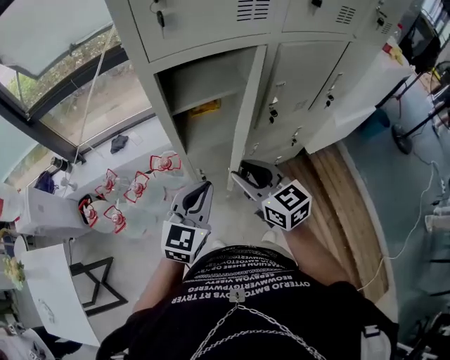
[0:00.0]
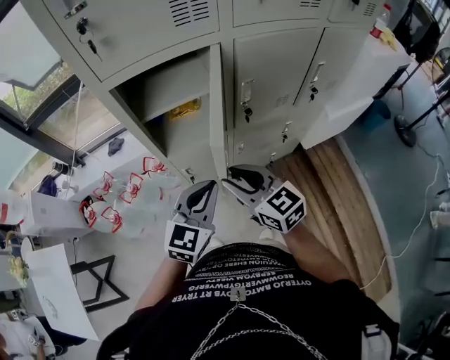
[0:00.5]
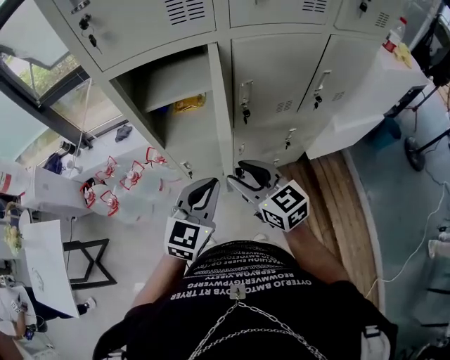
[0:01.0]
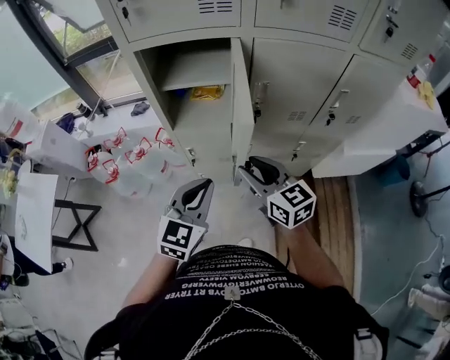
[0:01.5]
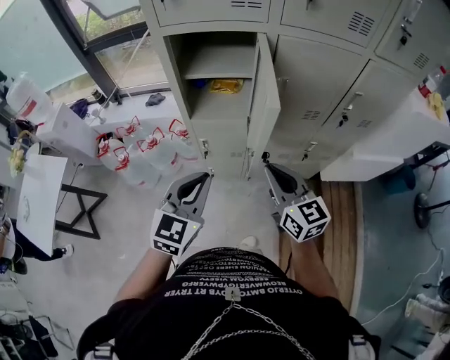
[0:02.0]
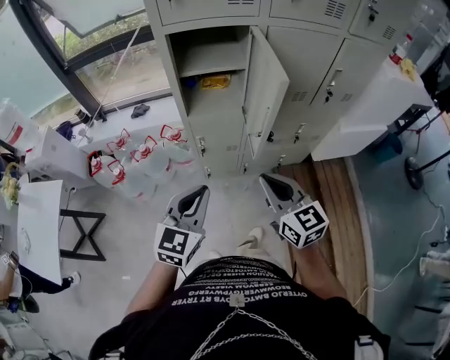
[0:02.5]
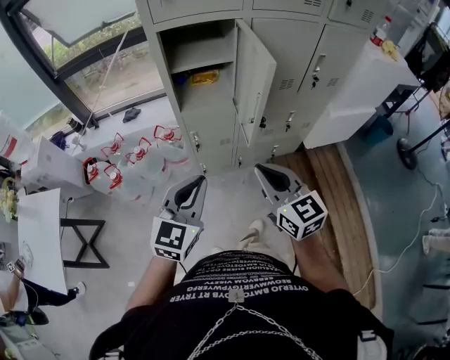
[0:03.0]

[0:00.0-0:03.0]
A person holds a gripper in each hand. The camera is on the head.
0:00.0 to 0:01.5: The left gripper moves to the right and backward, about 20 cm. The right gripper shifts some 20 cm to the right.
0:01.5 to 0:03.0: The two grippers go about 20 cm backward and to the left. The right gripper closes up.

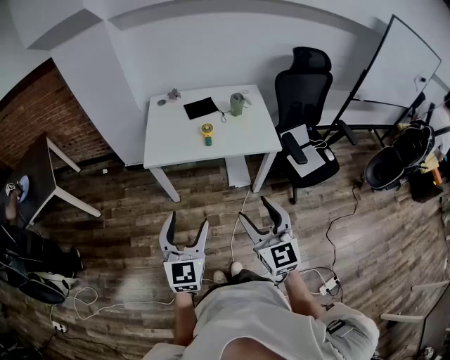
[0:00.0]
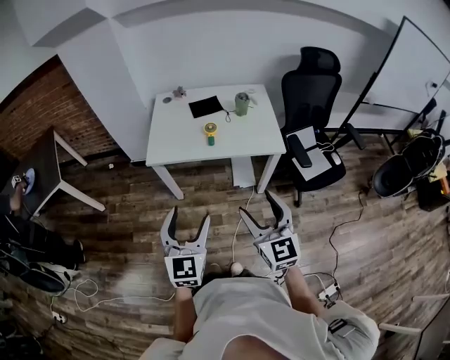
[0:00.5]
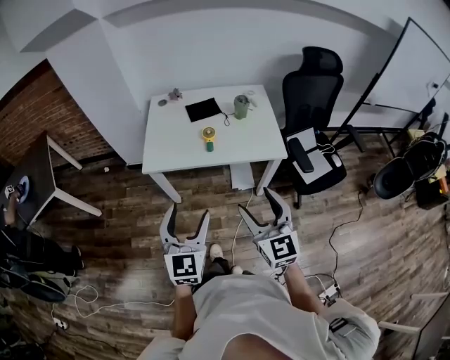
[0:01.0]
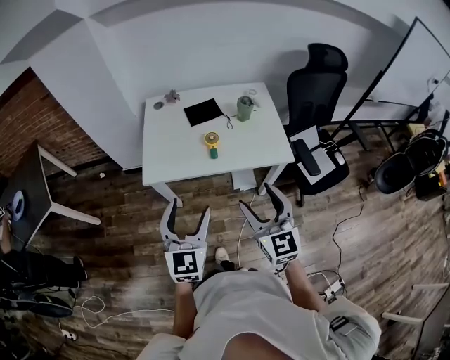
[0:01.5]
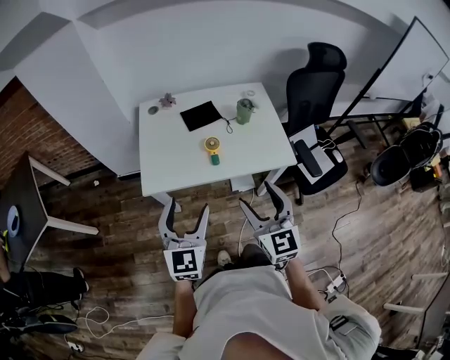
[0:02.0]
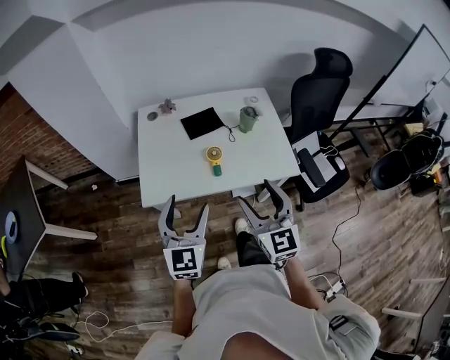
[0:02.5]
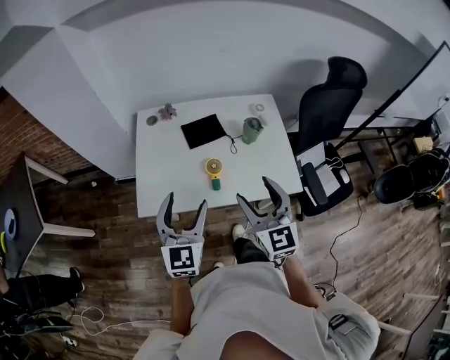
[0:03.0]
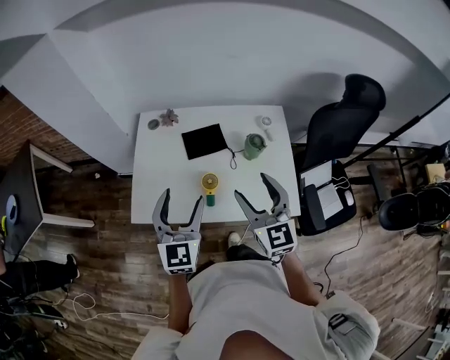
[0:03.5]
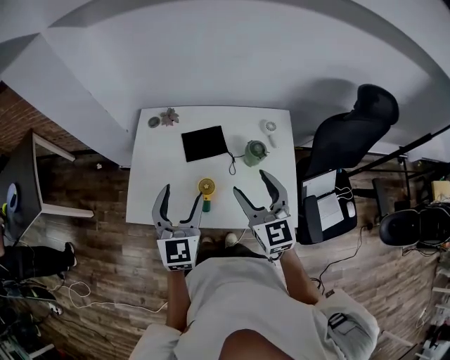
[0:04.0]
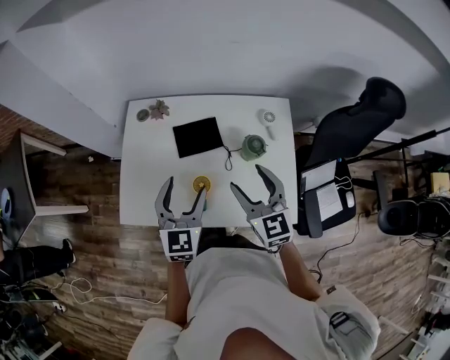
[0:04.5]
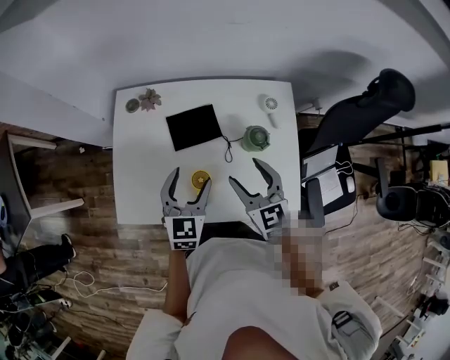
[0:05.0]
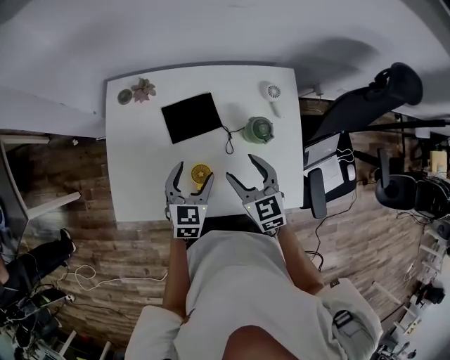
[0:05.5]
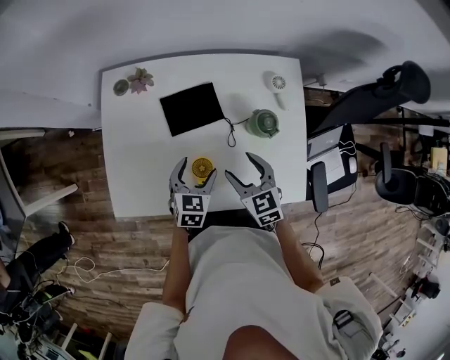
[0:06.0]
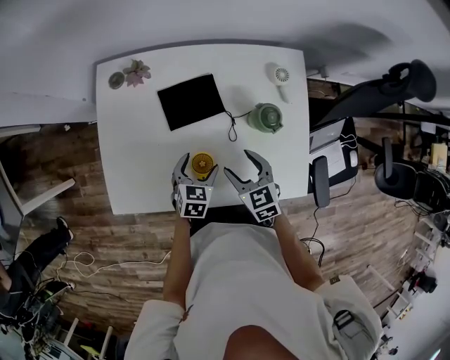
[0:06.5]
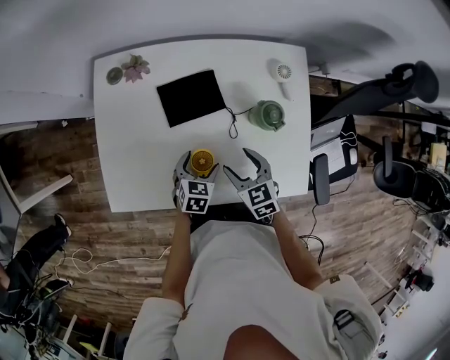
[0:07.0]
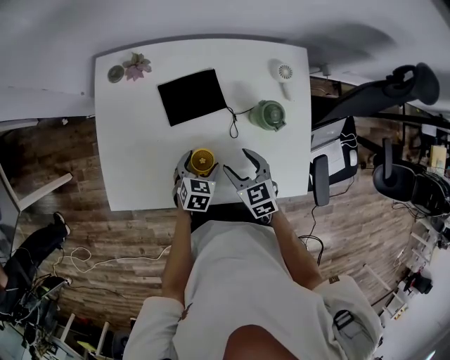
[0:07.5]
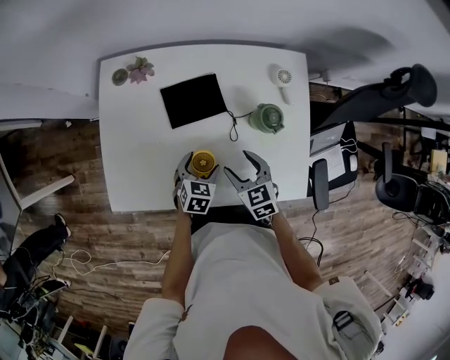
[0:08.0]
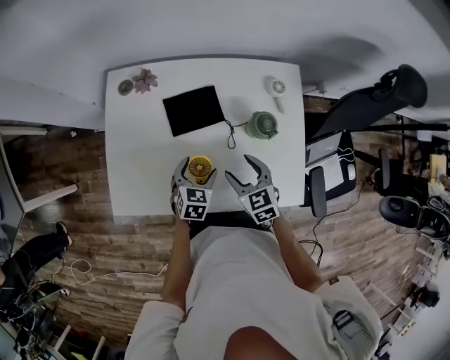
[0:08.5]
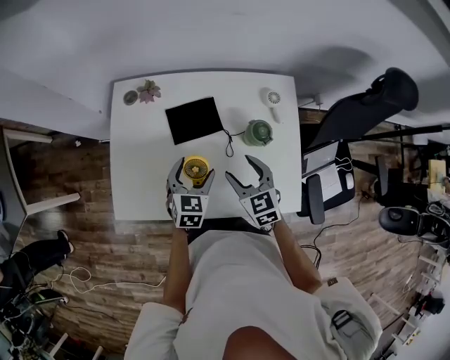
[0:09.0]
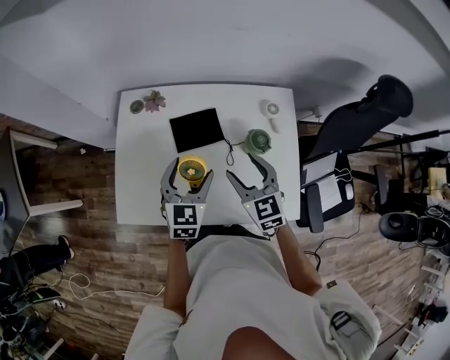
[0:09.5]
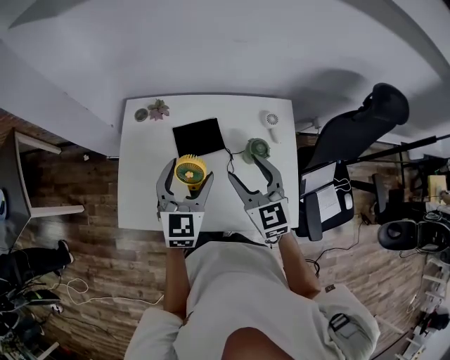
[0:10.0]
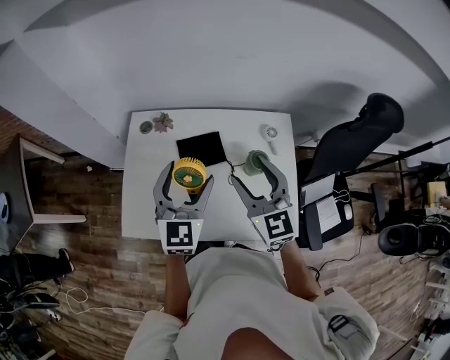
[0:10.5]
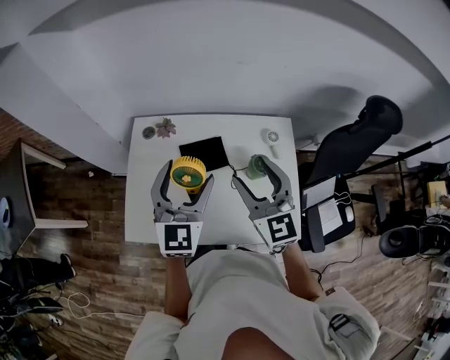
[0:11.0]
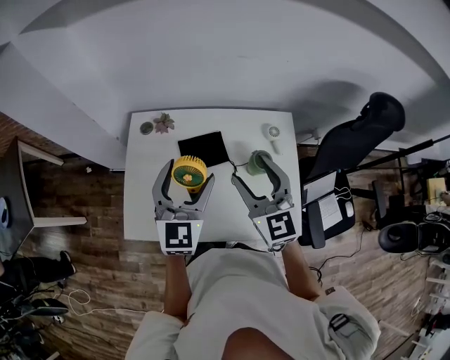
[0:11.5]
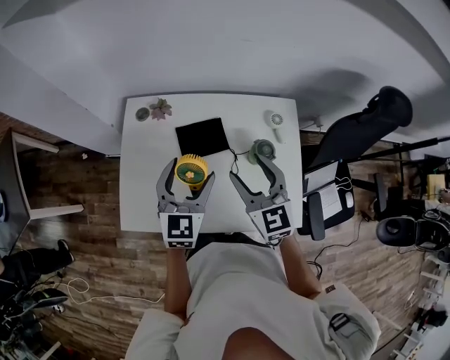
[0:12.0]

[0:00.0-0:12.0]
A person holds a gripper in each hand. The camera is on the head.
0:00.0 to 0:02.0: The two grippers go about 25 cm forward.
0:02.0 to 0:04.0: The grippers both shift forward by about 30 cm.
0:04.0 to 0:06.0: Both grippers move downward, some 25 cm. The right gripper rotates some 30 degrees, while the left gripper points its fingers some 30 degrees further downward.
0:06.0 to 0:08.0: The two grippers go some 5 cm downward.
0:08.0 to 0:10.0: Both grippers travel together upward, roughly 25 cm. The left gripper tilts its fingers approximately 40 degrees upward. Meanwhile the right gripper changes its angle by approximately 30 degrees.
0:10.0 to 0:12.0: The right gripper moves approximately 10 cm upward and comes back. Meanwhile the left gripper goes upward and returns, approximately 10 cm each way.

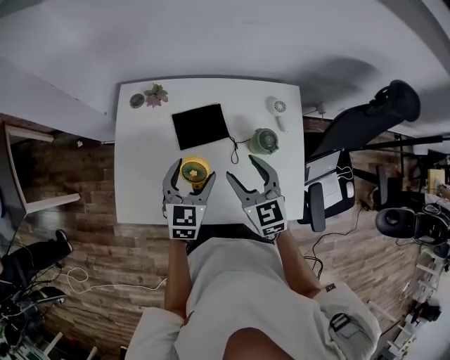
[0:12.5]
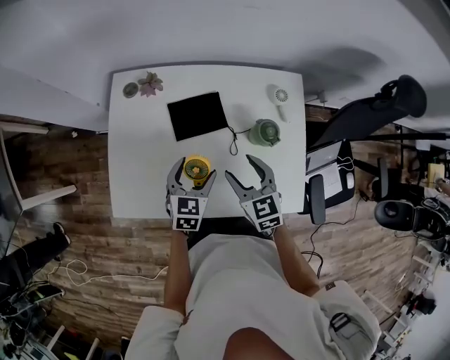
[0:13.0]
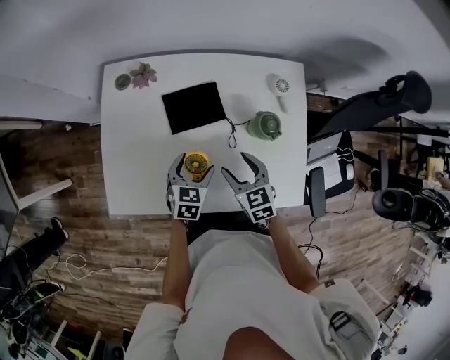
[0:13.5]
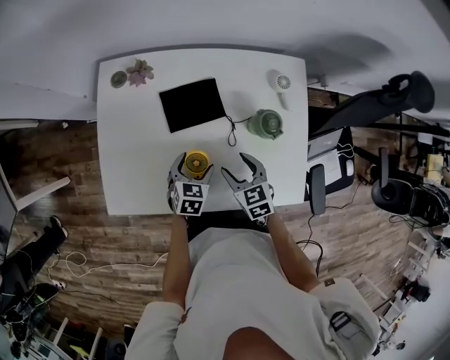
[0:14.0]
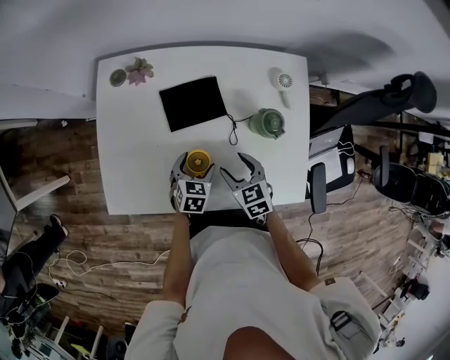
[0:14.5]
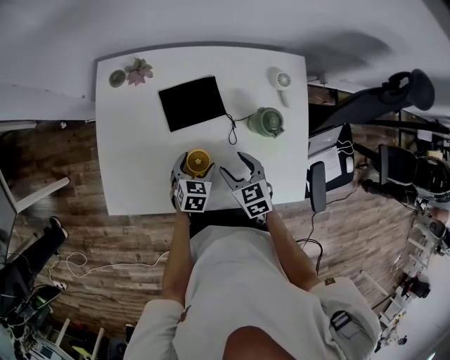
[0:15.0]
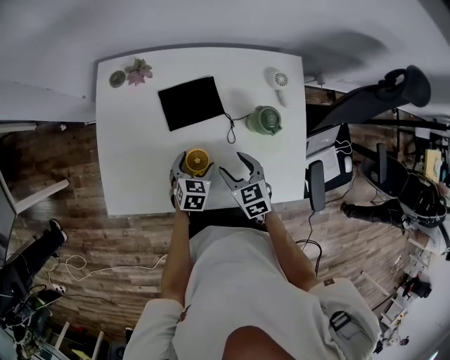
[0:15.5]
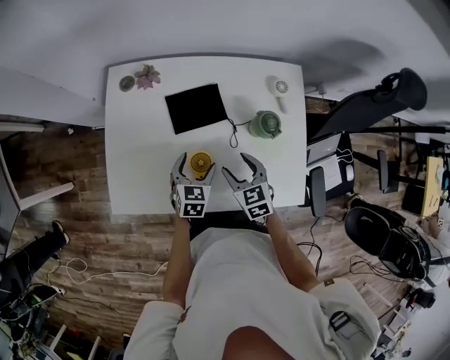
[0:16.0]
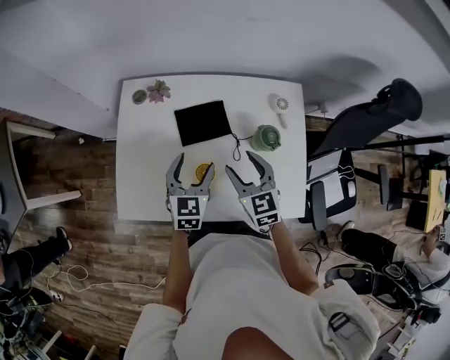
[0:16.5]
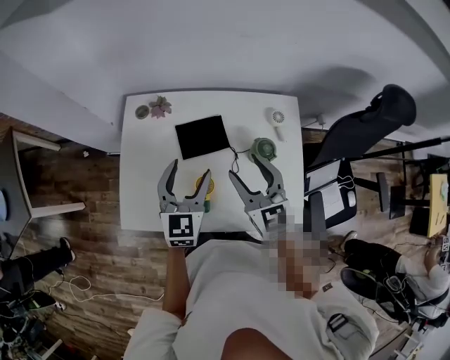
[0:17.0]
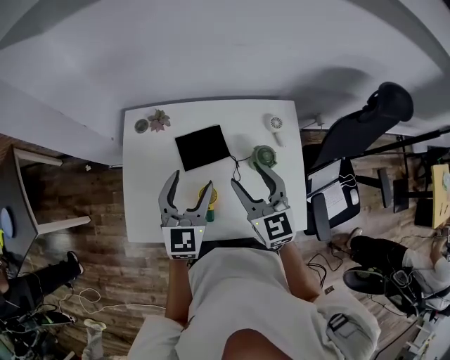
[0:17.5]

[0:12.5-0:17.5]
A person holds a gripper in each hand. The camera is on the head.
0:12.5 to 0:15.0: Both grippers move downward, some 20 cm. The right gripper changes its angle by approximately 20 degrees, while the left gripper turns by some 30 degrees.
0:15.0 to 0:17.5: The two grippers go roughly 30 cm upward. The left gripper points its fingers some 40 degrees further upward; the right gripper tips its fingers upward by roughly 30 degrees.

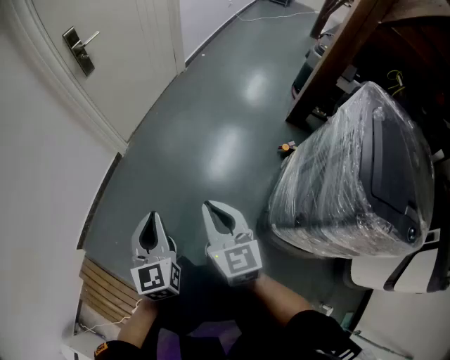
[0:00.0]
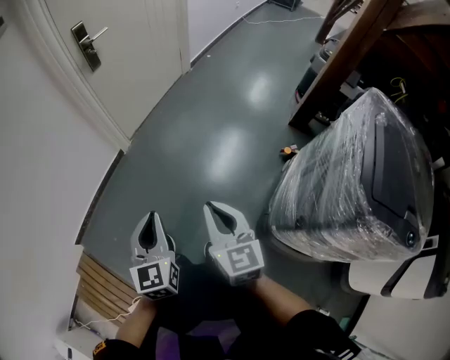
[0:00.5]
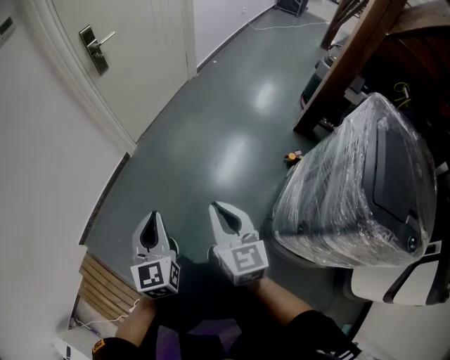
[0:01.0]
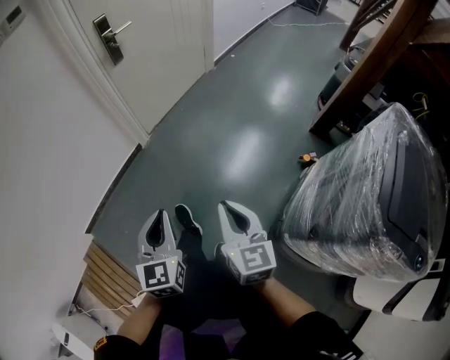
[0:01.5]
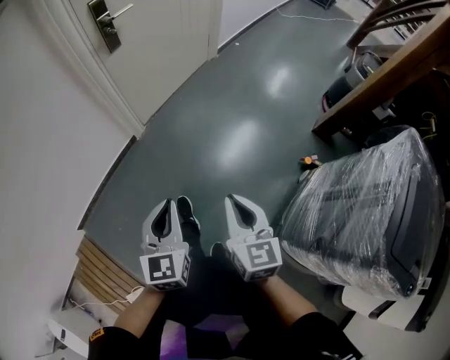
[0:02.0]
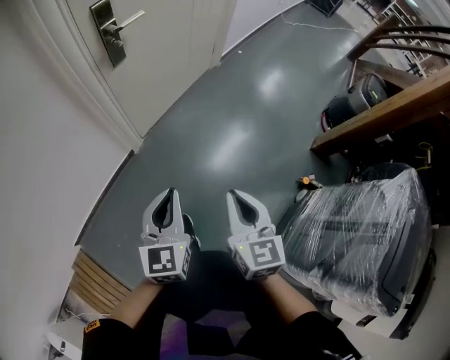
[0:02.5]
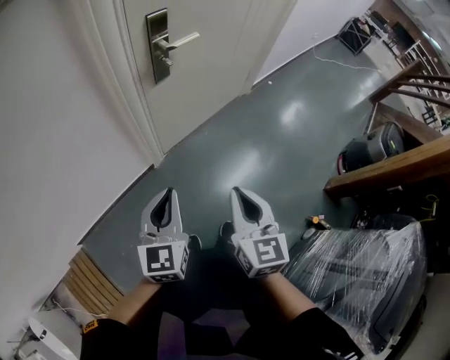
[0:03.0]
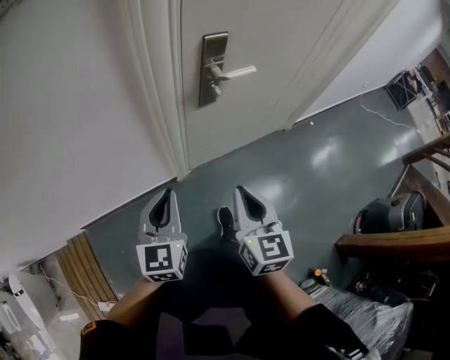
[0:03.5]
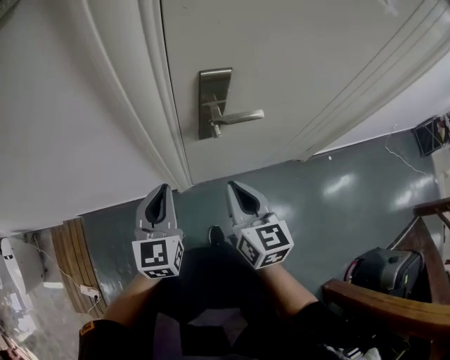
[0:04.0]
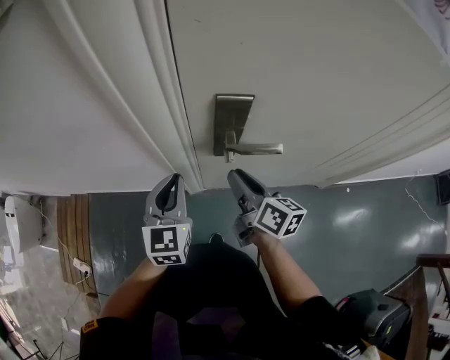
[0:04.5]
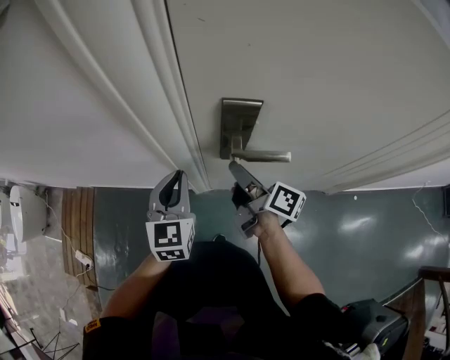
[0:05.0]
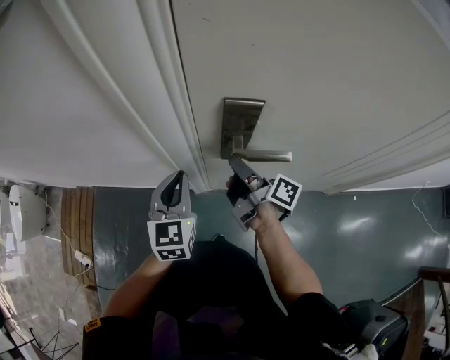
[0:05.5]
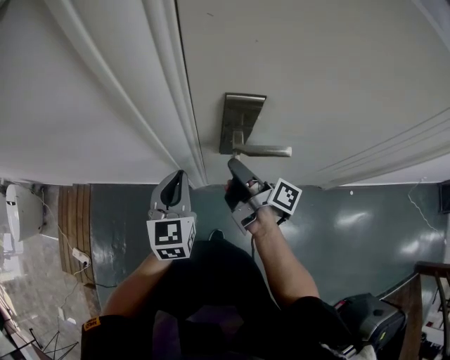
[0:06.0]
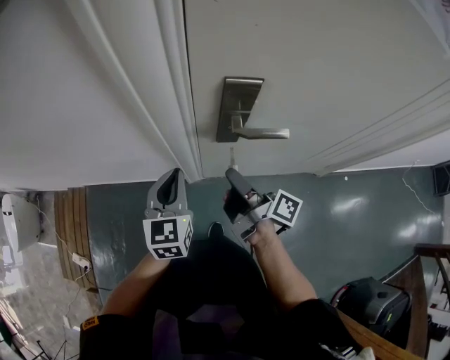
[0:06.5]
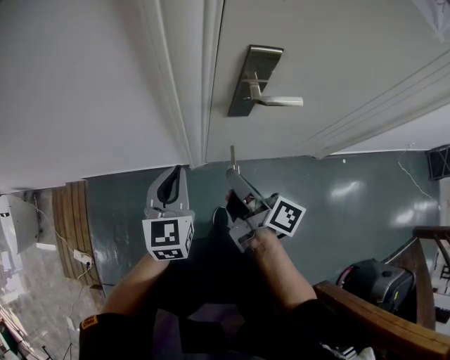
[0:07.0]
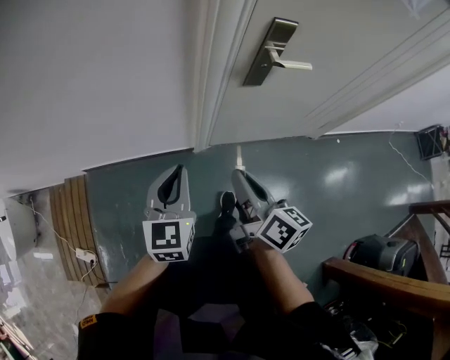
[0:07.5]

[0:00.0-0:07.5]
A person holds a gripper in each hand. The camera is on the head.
0:00.0 to 0:02.0: Both grippers move forward, roughly 15 cm.
0:02.0 to 0:04.0: The pair of grippers is taken about 60 cm. The right gripper turns by some 40 degrees; the left gripper changes its angle by some 40 degrees.
0:04.0 to 0:05.5: The right gripper moves forward, roughly 15 cm, and rotates around the line of its fingers by roughly 60 degrees, clockwise from behind, while the left gripper travels forward by about 5 cm.
0:05.5 to 0:07.5: The left gripper travels to the left and backward by about 25 cm; the right gripper is displaced backward and to the left by some 35 cm, and changes its angle by about 40 degrees.
